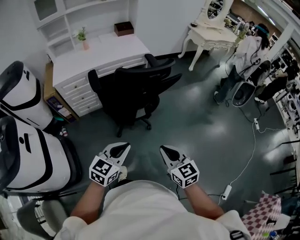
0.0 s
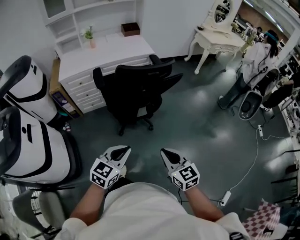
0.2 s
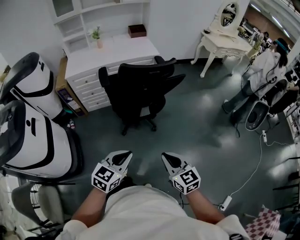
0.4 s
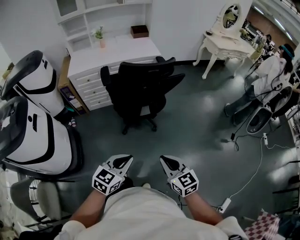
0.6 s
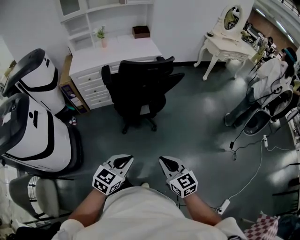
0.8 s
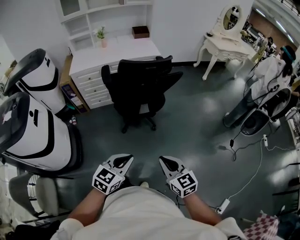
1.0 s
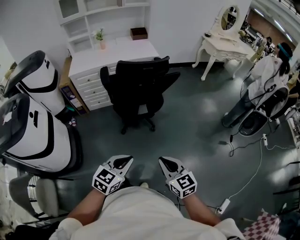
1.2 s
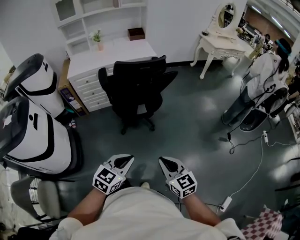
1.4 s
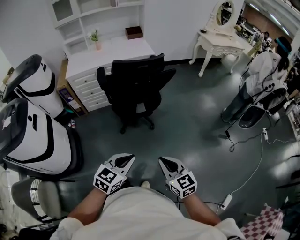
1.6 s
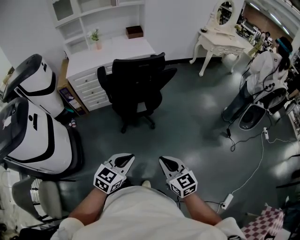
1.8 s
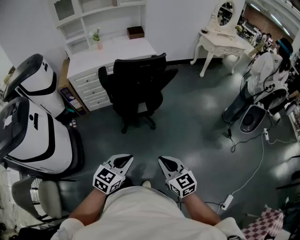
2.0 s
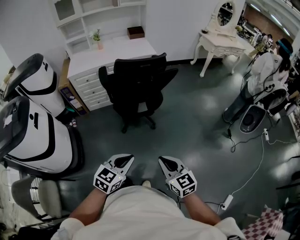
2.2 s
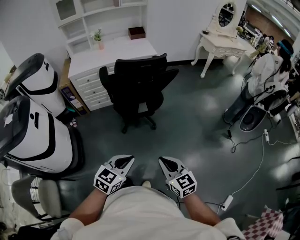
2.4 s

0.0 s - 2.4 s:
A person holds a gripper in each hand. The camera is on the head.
0.0 s - 1.2 s: The two grippers go approximately 15 cm backward and to the right.
1.2 s - 2.4 s: The grippers stay close to where they were, moving slightly.

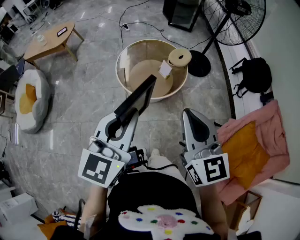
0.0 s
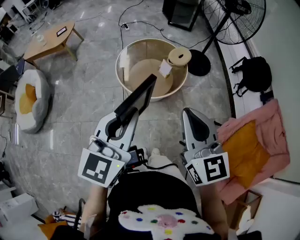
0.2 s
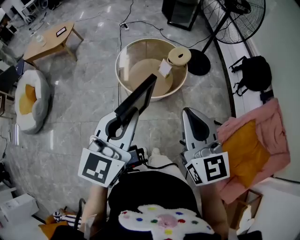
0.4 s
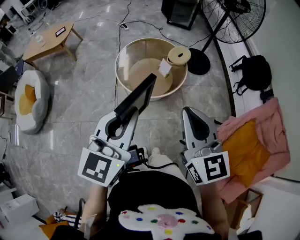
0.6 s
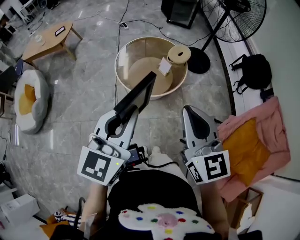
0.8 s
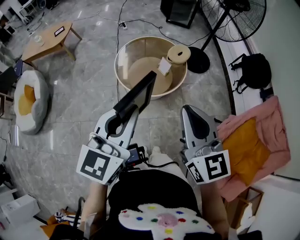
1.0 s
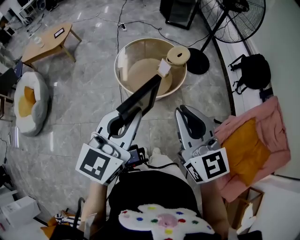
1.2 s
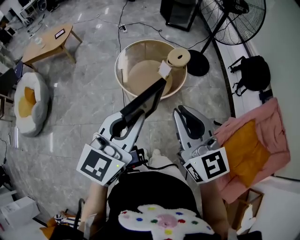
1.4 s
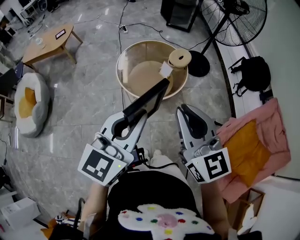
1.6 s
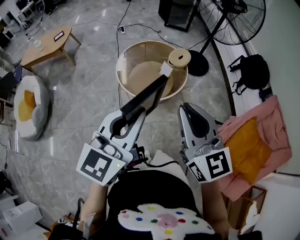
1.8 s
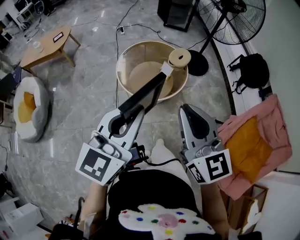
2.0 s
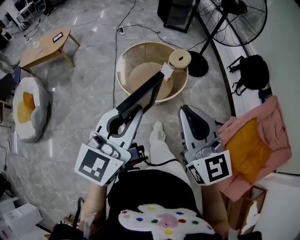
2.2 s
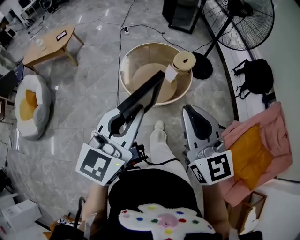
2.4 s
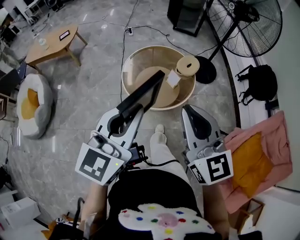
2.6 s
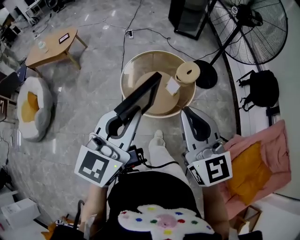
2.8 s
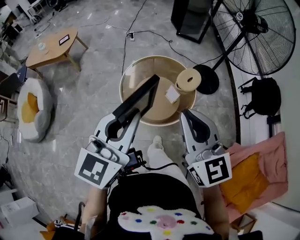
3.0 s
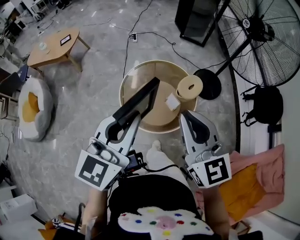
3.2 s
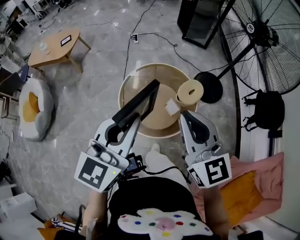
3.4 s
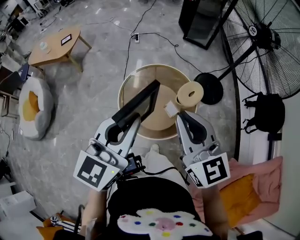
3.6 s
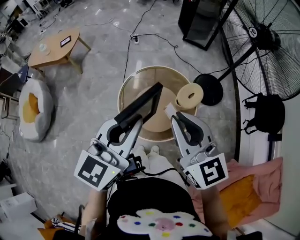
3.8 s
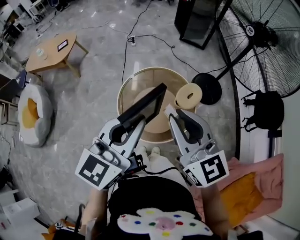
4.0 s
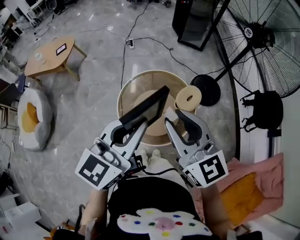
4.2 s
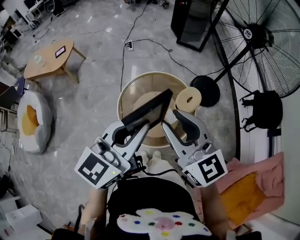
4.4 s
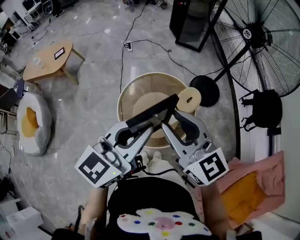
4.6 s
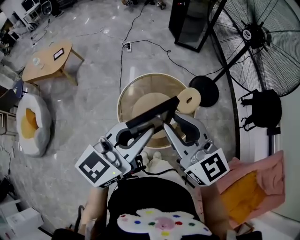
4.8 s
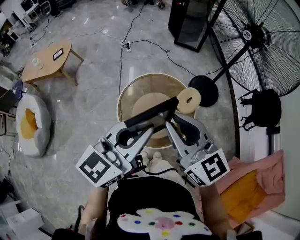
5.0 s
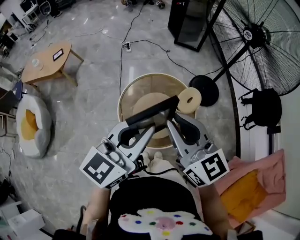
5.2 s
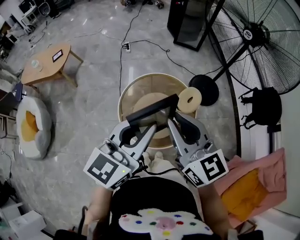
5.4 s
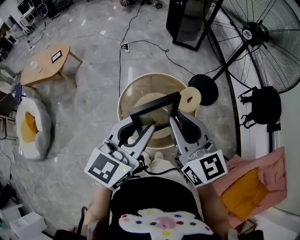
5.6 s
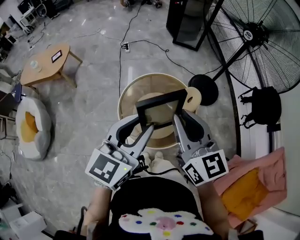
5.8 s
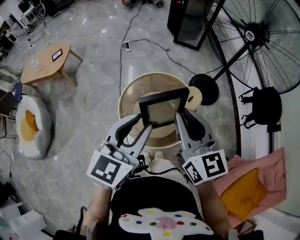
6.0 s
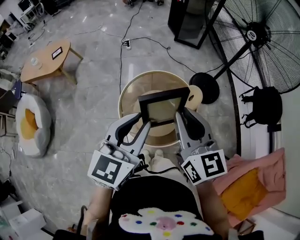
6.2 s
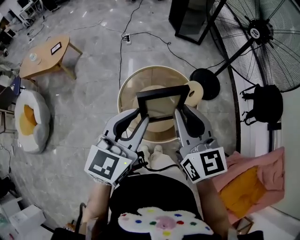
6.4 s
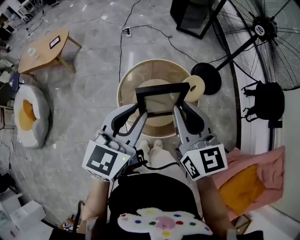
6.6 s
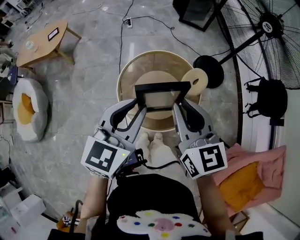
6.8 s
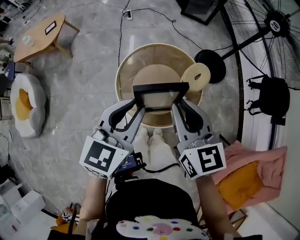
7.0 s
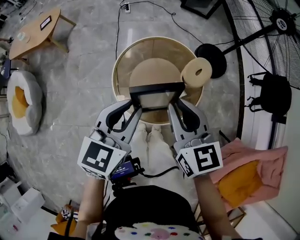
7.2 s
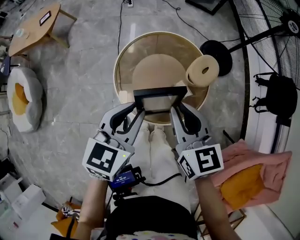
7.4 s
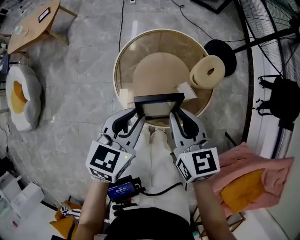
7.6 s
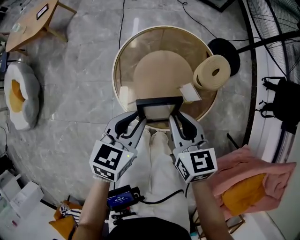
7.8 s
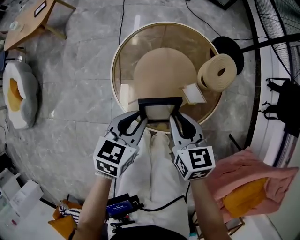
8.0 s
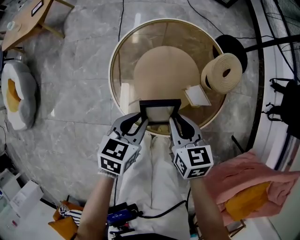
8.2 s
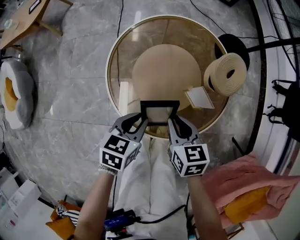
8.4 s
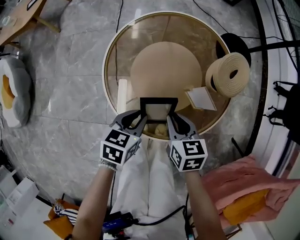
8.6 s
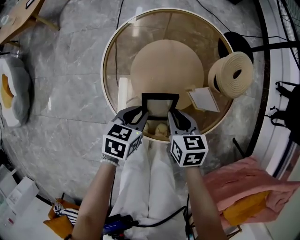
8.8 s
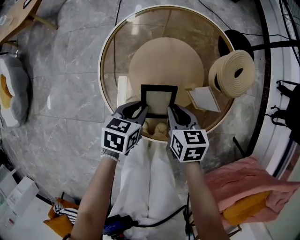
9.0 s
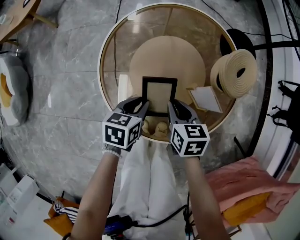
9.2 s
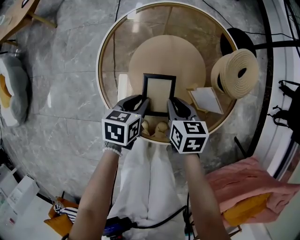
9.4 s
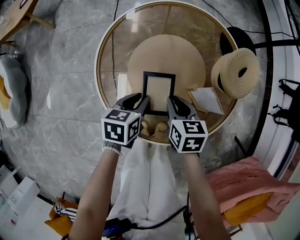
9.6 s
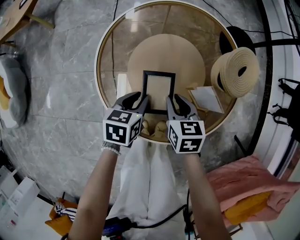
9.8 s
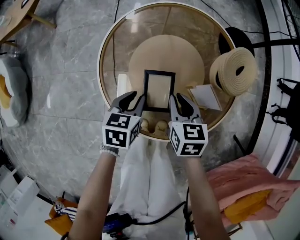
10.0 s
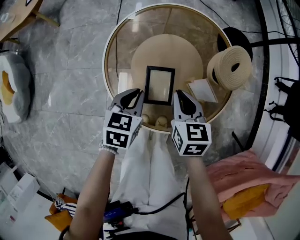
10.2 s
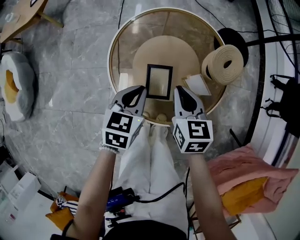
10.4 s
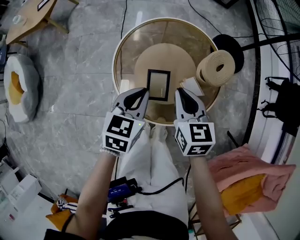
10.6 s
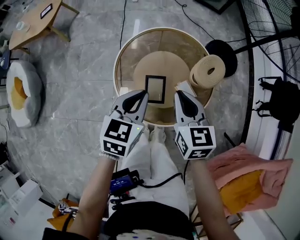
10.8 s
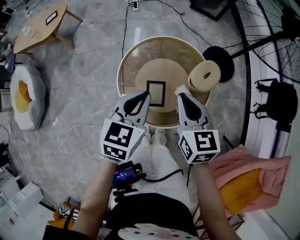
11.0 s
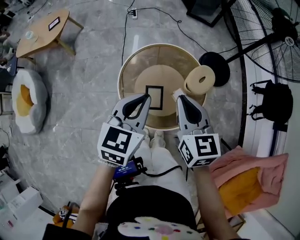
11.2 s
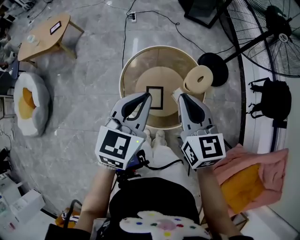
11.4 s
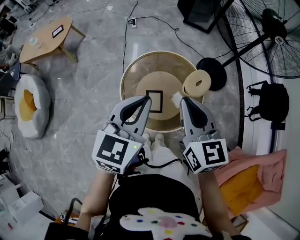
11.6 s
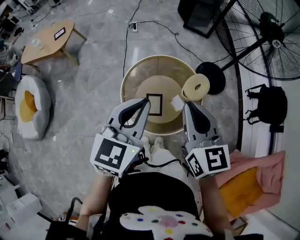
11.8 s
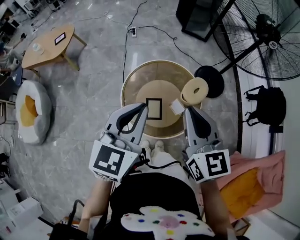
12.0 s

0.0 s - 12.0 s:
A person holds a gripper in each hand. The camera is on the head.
0.0 s - 1.6 s: The grippers make only small movements.
1.6 s - 3.0 s: The grippers both shift forward by about 15 cm.
3.0 s - 4.4 s: Both grippers move forward, approximately 10 cm. The right gripper opens.
4.4 s - 6.0 s: The left gripper opens up.
6.0 s - 7.6 s: The two grippers go roughly 20 cm downward. The left gripper rotates about 20 degrees; the right gripper turns by approximately 20 degrees.
7.6 s - 9.0 s: Both grippers travel together downward, some 30 cm. The left gripper changes its angle by roughly 20 degrees. The right gripper changes its angle by about 20 degrees.
9.0 s - 10.4 s: Both grippers travel together upward, some 10 cm.
10.4 s - 12.0 s: The grippers both shift upward by some 35 cm. The right gripper rotates approximately 30 degrees; the left gripper changes its angle by about 30 degrees.

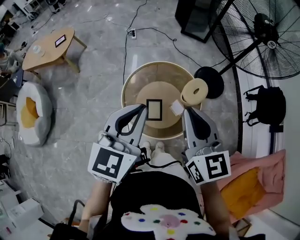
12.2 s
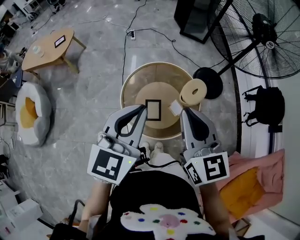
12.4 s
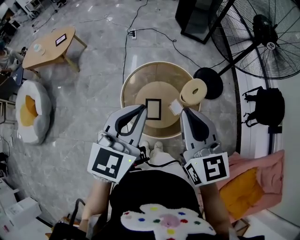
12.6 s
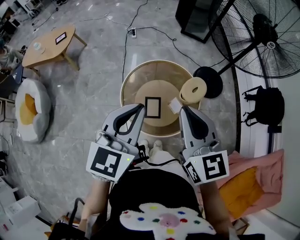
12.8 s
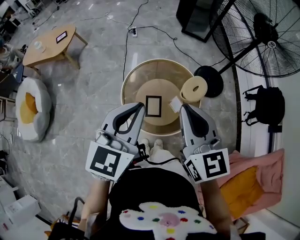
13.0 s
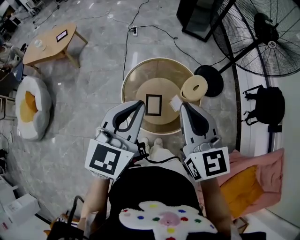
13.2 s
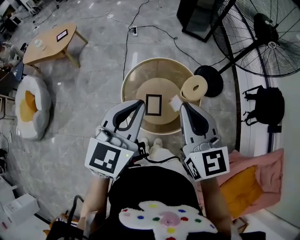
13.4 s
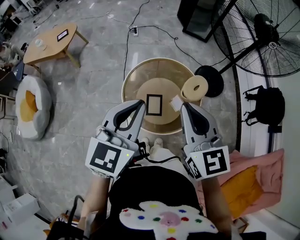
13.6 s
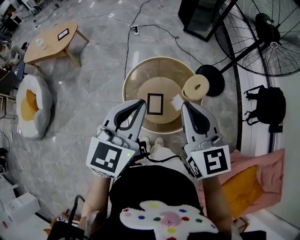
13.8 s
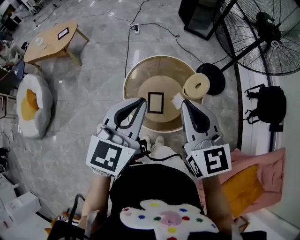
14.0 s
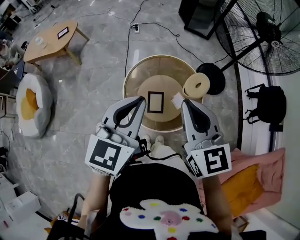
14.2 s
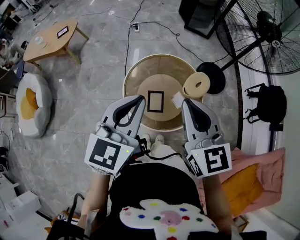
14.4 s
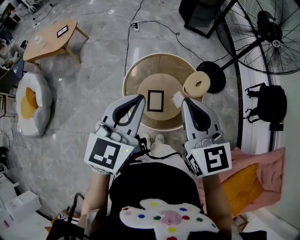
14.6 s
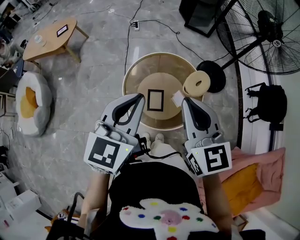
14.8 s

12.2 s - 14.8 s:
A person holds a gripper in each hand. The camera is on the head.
12.2 s - 13.4 s: There are only small adjustments of the grippers.
13.4 s - 14.8 s: Neither gripper changes place.

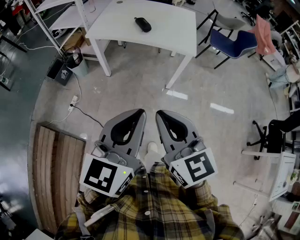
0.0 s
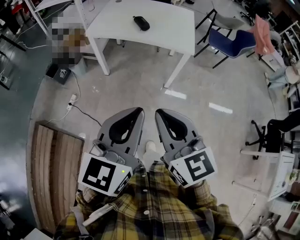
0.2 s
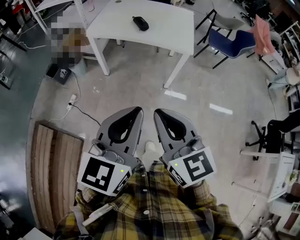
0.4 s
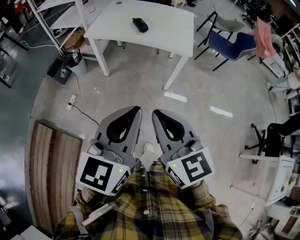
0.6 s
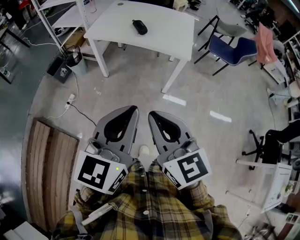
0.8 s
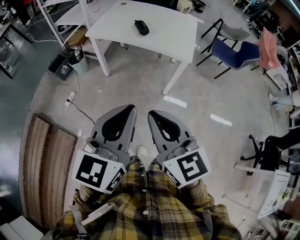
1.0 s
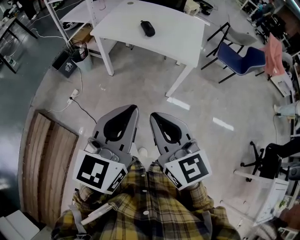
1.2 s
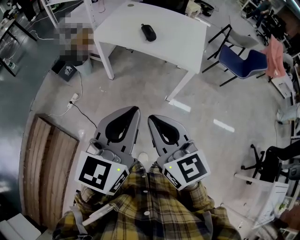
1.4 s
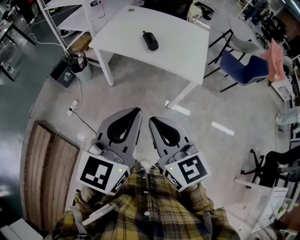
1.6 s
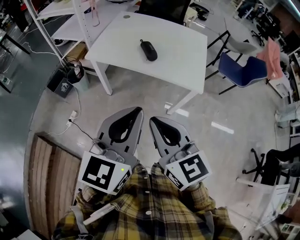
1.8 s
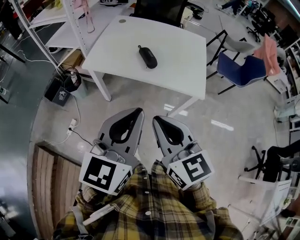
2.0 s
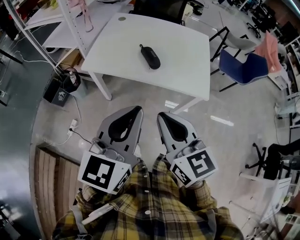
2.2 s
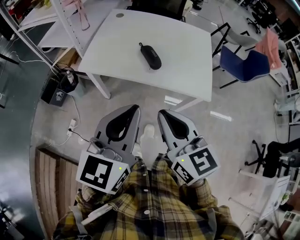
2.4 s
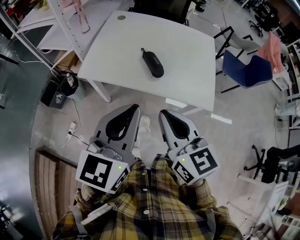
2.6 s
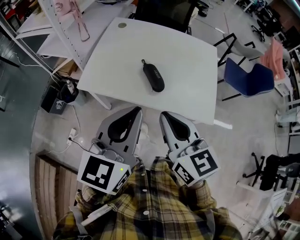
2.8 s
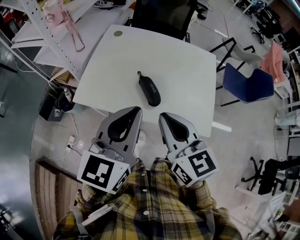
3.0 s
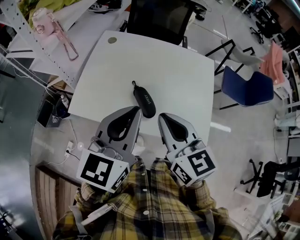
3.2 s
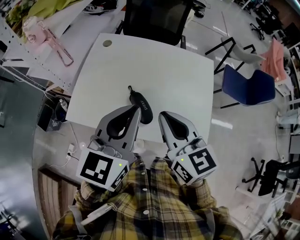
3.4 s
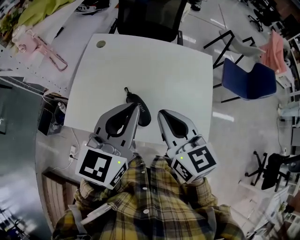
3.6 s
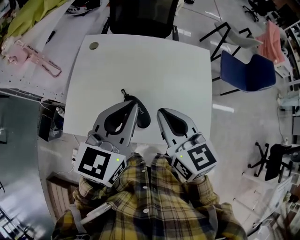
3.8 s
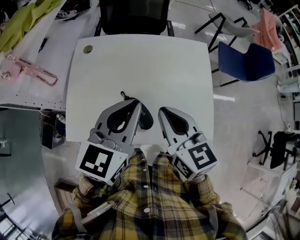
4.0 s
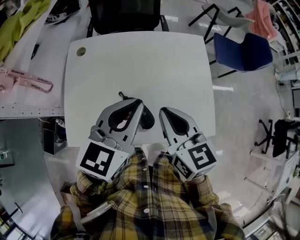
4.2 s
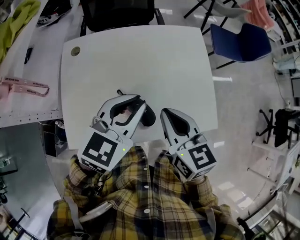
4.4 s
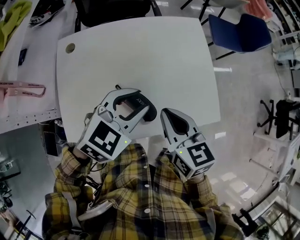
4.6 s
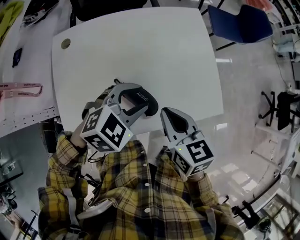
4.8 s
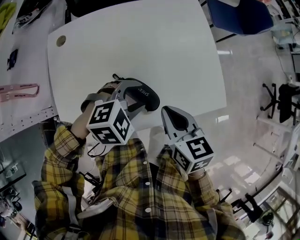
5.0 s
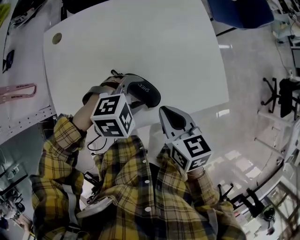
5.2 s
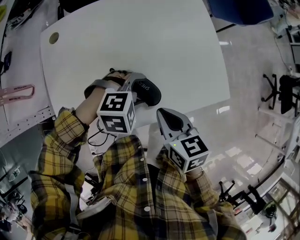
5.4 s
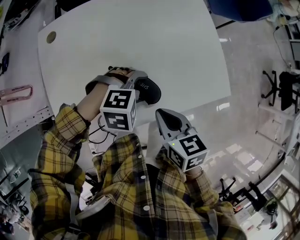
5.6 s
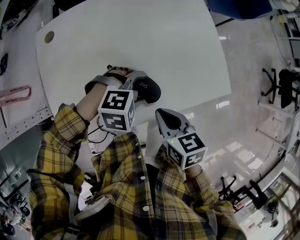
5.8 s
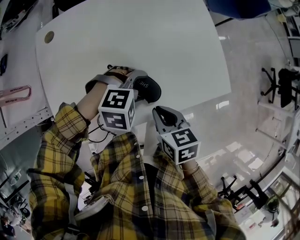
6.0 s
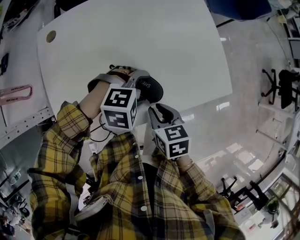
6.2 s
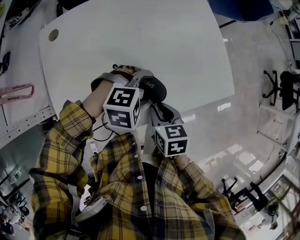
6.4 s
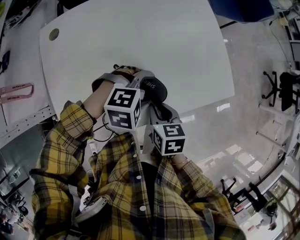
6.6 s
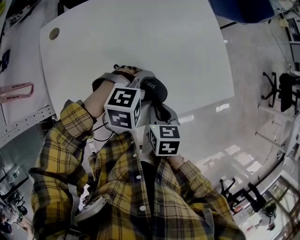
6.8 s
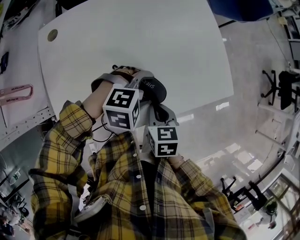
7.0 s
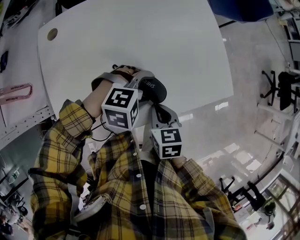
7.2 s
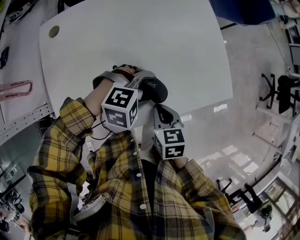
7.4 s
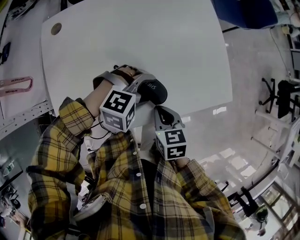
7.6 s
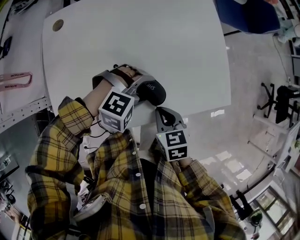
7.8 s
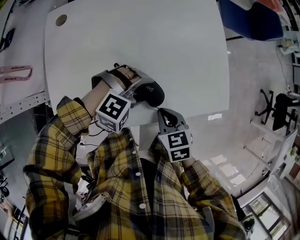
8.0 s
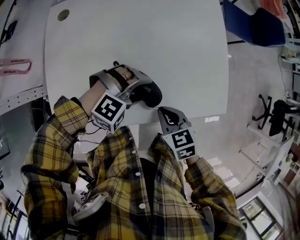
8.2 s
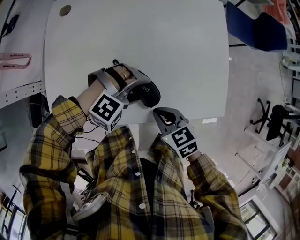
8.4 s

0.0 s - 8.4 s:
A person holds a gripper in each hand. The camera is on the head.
0.0 s - 1.4 s: The two grippers go roughly 10 cm forward and to the right.
1.4 s - 2.8 s: Both grippers move forward, approximately 40 cm.
2.8 s - 4.2 s: Both grippers move forward, approximately 25 cm. The left gripper swivels some 30 degrees.
4.2 s - 5.6 s: The right gripper moves downward, approximately 15 cm, and rotates some 30 degrees; the left gripper is displaced downward by roughly 25 cm, points its fingers some 50 degrees further downward, and opens up.
5.6 s - 7.0 s: The right gripper goes about 10 cm downward.
7.0 s - 8.4 s: The right gripper rotates about 40 degrees.
